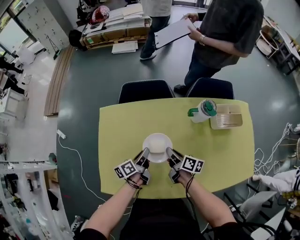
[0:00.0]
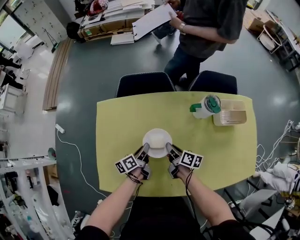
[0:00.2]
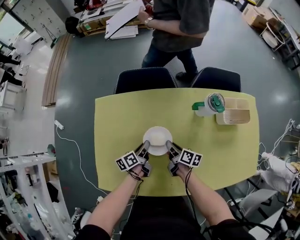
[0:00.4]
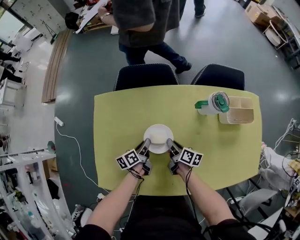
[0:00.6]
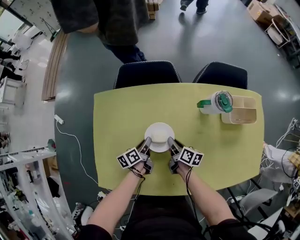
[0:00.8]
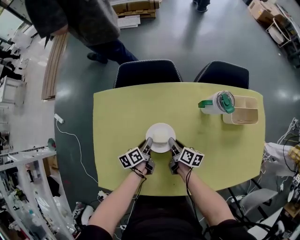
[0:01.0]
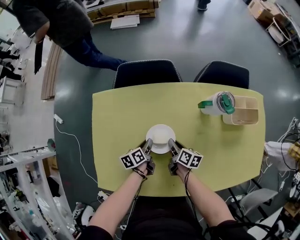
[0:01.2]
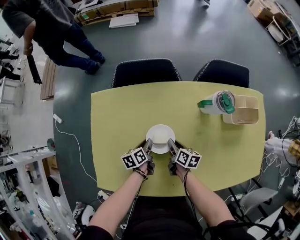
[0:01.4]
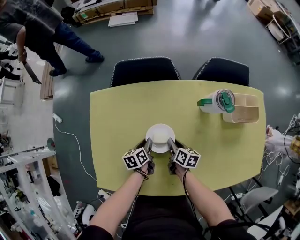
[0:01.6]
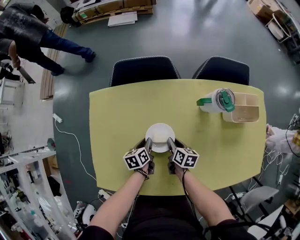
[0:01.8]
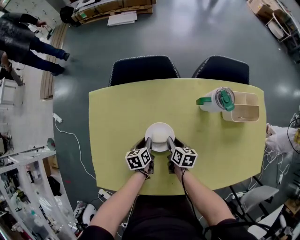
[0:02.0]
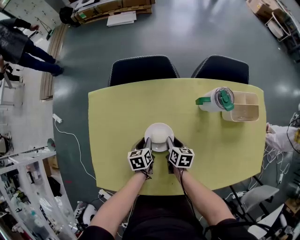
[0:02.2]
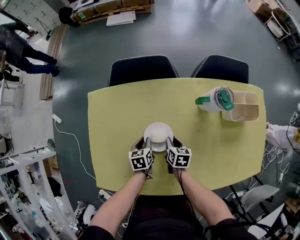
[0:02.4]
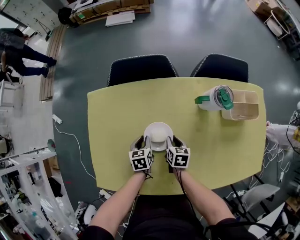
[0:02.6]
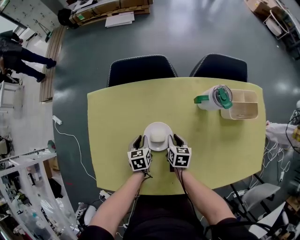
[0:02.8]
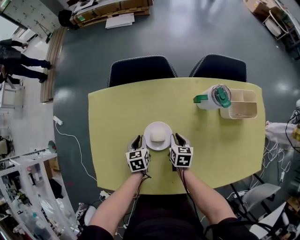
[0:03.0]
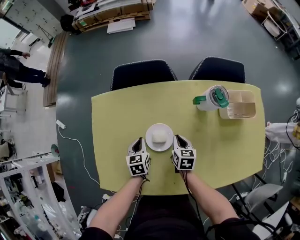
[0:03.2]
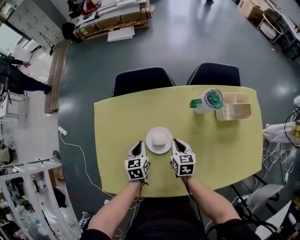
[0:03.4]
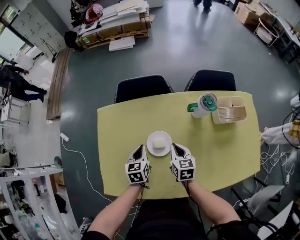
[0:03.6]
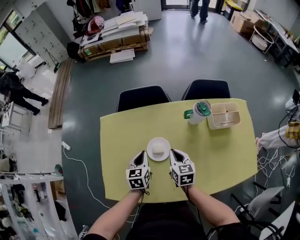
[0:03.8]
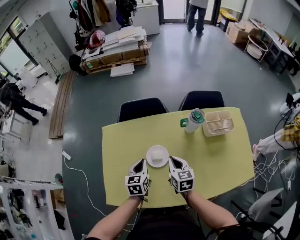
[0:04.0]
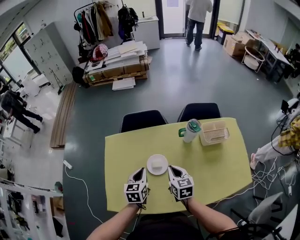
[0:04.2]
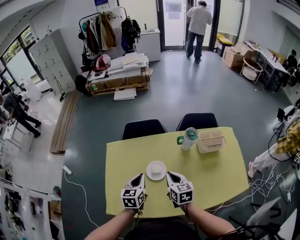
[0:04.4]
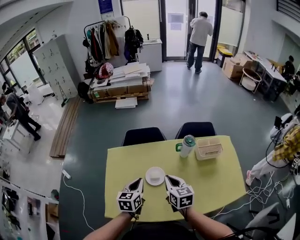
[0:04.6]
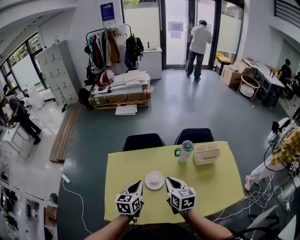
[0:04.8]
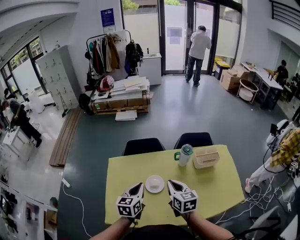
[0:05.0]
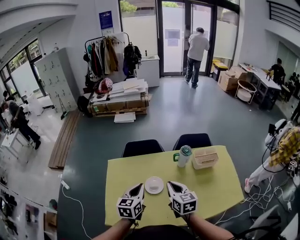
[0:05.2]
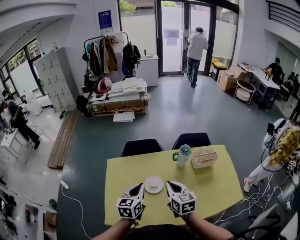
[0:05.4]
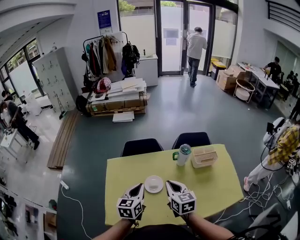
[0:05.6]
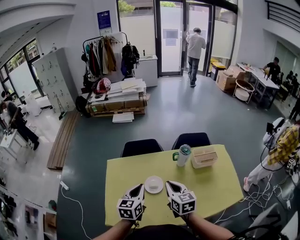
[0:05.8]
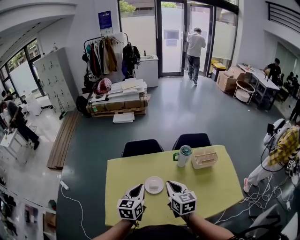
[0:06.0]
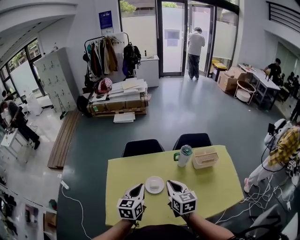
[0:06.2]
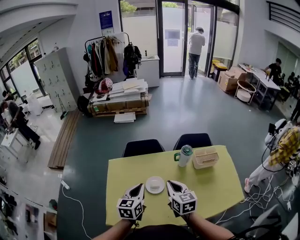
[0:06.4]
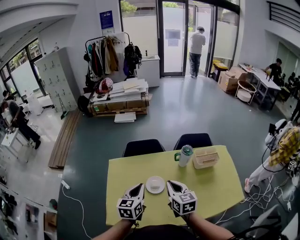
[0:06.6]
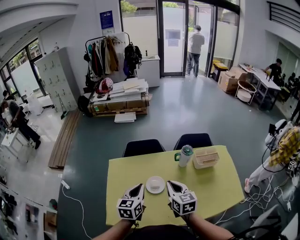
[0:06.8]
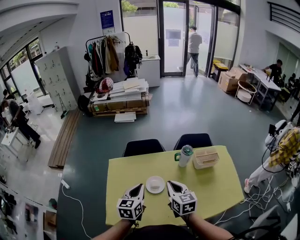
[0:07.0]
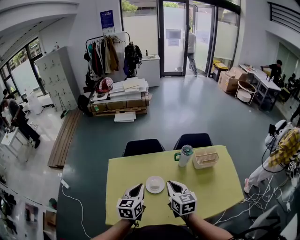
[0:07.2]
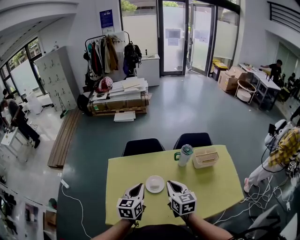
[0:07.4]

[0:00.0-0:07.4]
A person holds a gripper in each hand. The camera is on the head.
0:00.0 to 0:01.4: Both grippers travel together downward, some 15 cm. The left gripper changes its angle by about 30 degrees.
0:01.4 to 0:03.0: The right gripper turns by some 30 degrees; the left gripper turns by some 30 degrees.
0:03.0 to 0:04.4: The two grippers go about 30 cm upward. The right gripper changes its angle by approximately 20 degrees; the left gripper turns by roughly 20 degrees.
0:04.4 to 0:06.0: Both grippers travel together upward, approximately 10 cm.
0:06.0 to 0:07.4: Both grippers stay about where they are.

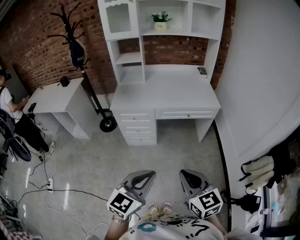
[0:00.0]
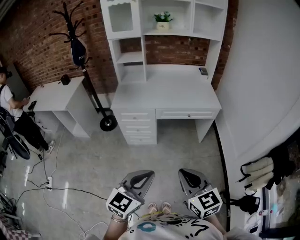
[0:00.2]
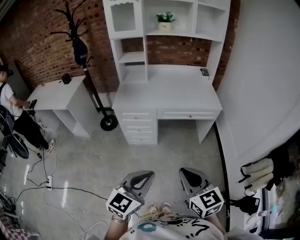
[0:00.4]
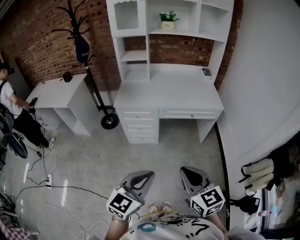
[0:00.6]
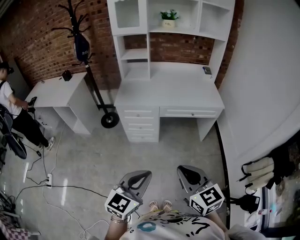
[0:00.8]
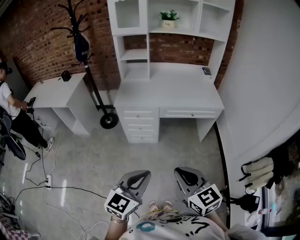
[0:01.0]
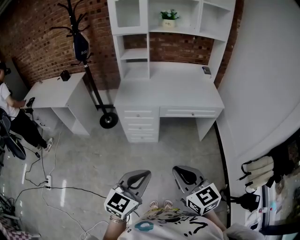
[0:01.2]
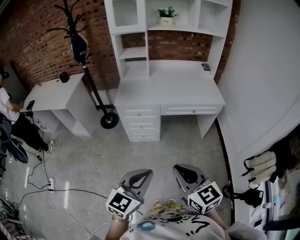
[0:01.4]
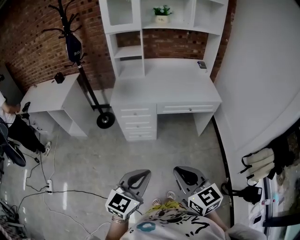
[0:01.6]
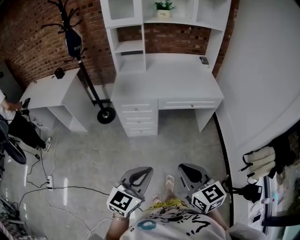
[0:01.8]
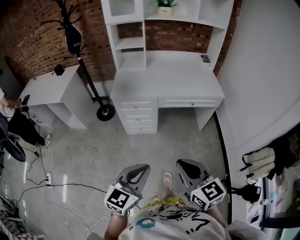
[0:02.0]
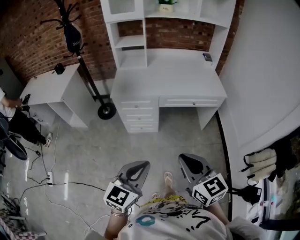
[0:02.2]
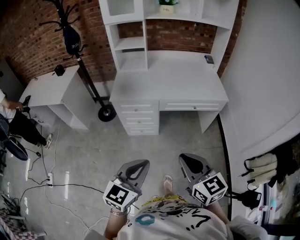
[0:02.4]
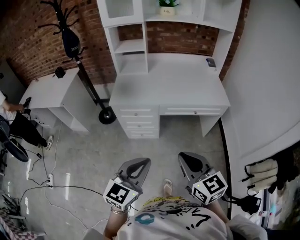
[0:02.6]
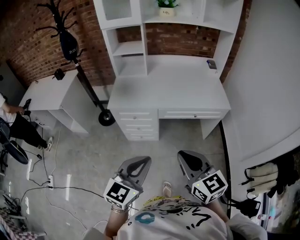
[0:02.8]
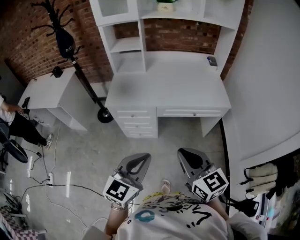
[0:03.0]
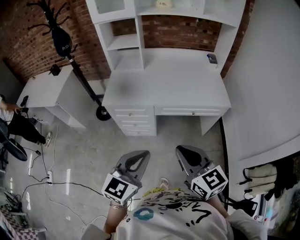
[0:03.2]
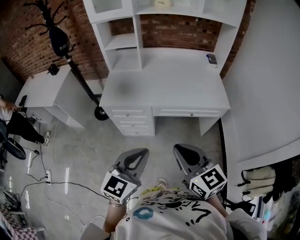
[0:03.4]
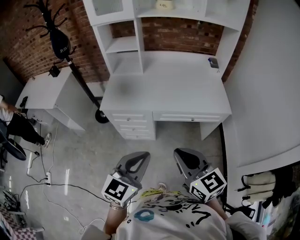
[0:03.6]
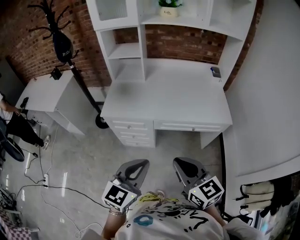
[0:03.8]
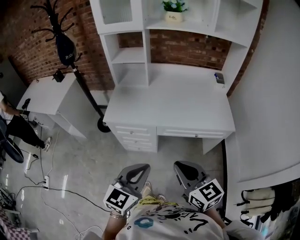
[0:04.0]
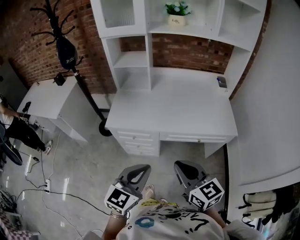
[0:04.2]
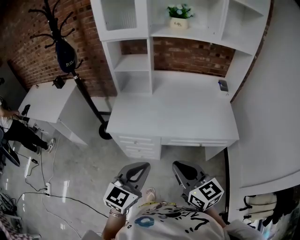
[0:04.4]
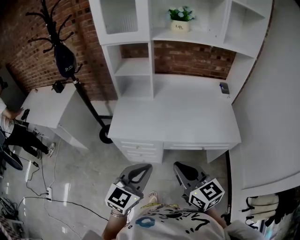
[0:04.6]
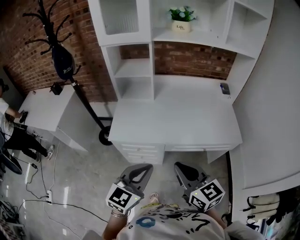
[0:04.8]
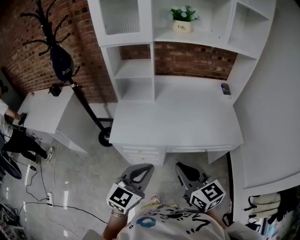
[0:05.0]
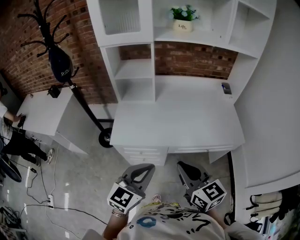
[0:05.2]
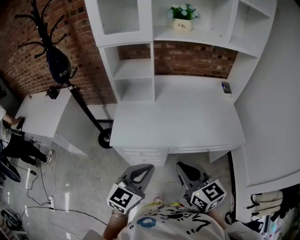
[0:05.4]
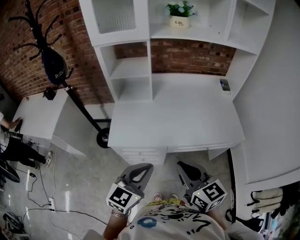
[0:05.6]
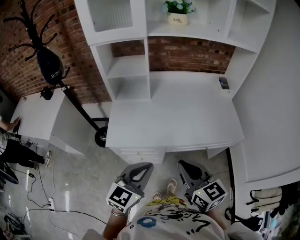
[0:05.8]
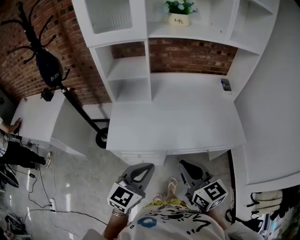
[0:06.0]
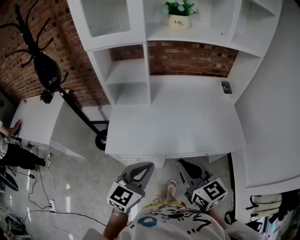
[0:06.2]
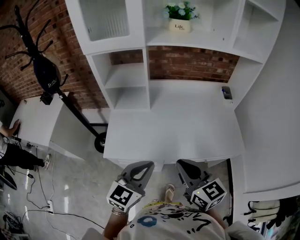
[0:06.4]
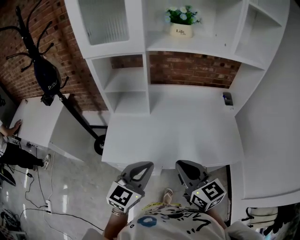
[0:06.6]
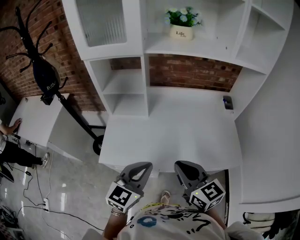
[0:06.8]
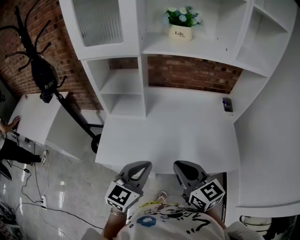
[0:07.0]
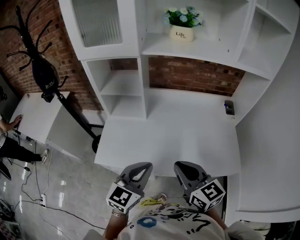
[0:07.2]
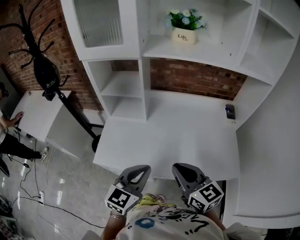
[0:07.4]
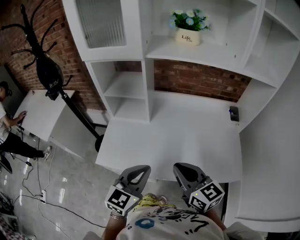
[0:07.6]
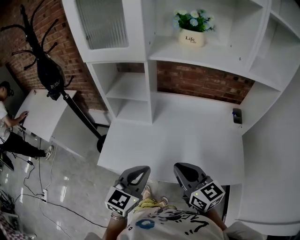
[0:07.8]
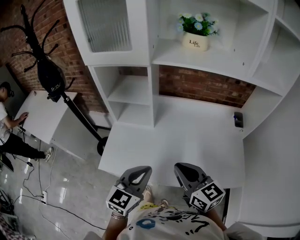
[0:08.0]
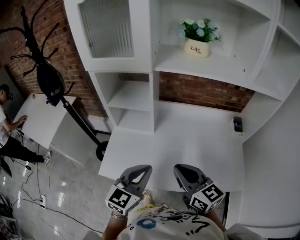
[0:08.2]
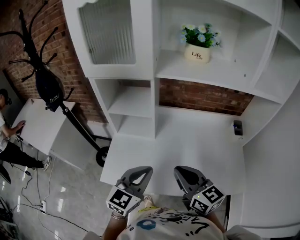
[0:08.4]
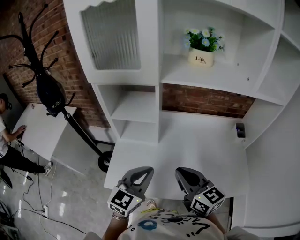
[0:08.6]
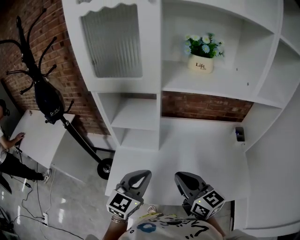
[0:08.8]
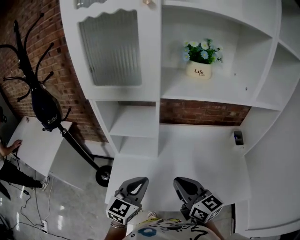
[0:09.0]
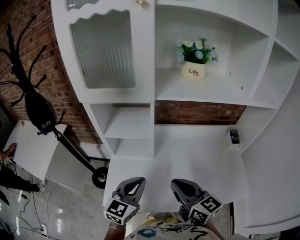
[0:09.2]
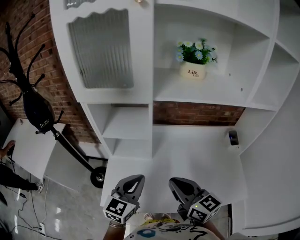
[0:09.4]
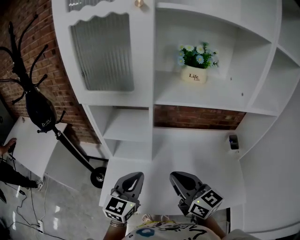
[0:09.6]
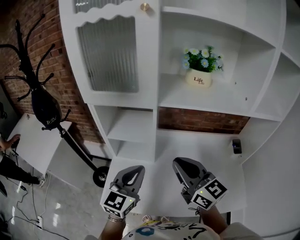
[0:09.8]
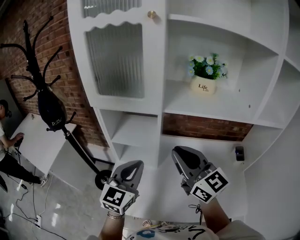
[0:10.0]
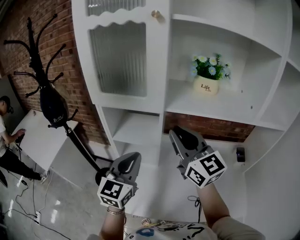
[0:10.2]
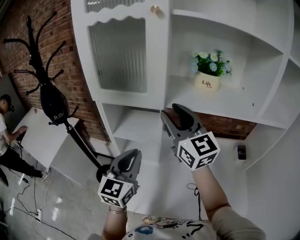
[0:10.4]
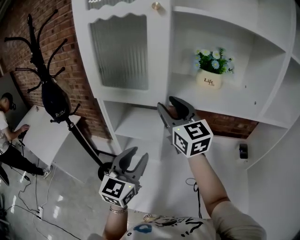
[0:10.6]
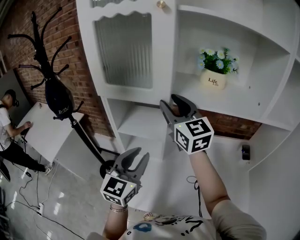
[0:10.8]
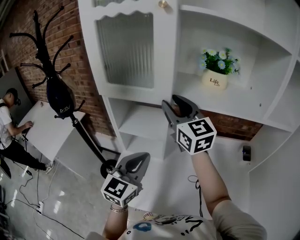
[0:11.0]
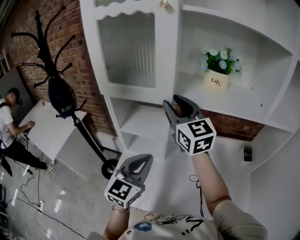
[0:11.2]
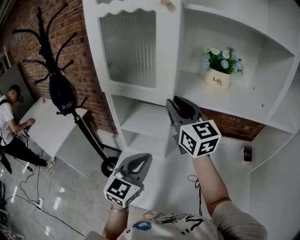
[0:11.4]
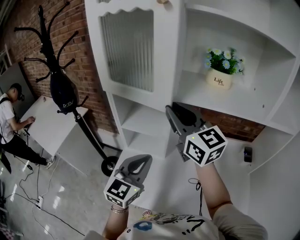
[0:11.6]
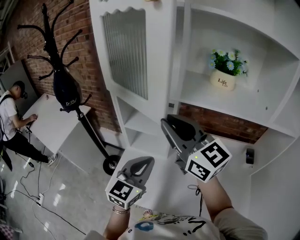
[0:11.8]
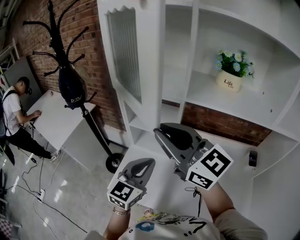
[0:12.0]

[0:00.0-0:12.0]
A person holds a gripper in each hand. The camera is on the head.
0:00.0 to 0:01.6: Both grippers travel together to the left, roughly 10 cm.
0:01.6 to 0:03.0: The two grippers go some 20 cm forward.
0:03.0 to 0:04.4: Both grippers travel together forward, approximately 15 cm.
0:04.4 to 0:06.0: Both grippers travel together forward, approximately 10 cm.
0:06.0 to 0:07.6: Both grippers travel together forward and to the right, approximately 15 cm.
0:07.6 to 0:09.0: The two grippers go about 15 cm forward and to the left.
0:09.0 to 0:10.4: The right gripper heads upward and forward, covering some 30 cm, turns by approximately 30 degrees, and opens up; the left gripper travels upward and forward by roughly 15 cm, and changes its angle by roughly 20 degrees.
0:10.4 to 0:12.0: The left gripper moves some 5 cm, and opens and closes again. The right gripper moves backward and to the left, some 15 cm, changes its angle by approximately 30 degrees, and closes up.

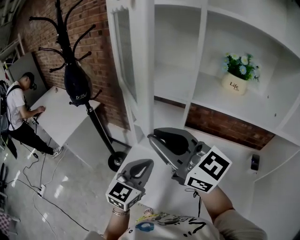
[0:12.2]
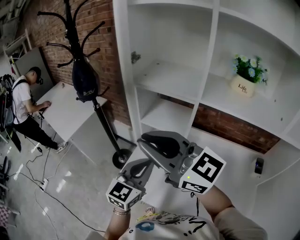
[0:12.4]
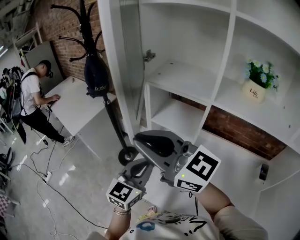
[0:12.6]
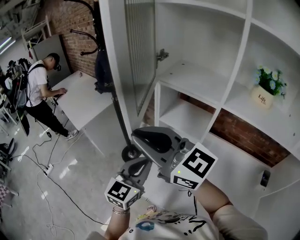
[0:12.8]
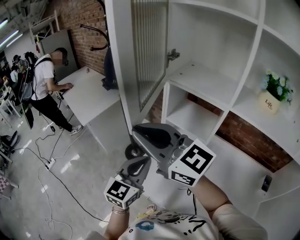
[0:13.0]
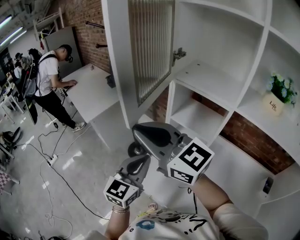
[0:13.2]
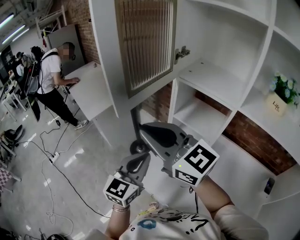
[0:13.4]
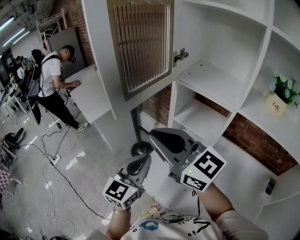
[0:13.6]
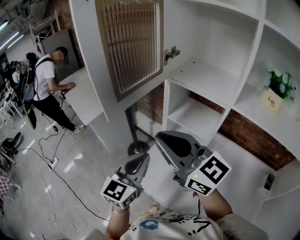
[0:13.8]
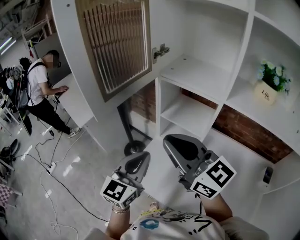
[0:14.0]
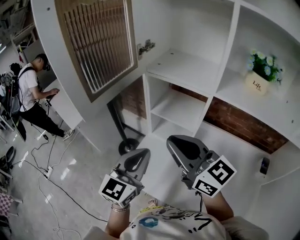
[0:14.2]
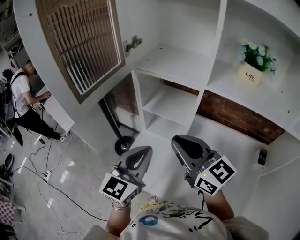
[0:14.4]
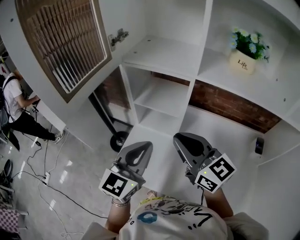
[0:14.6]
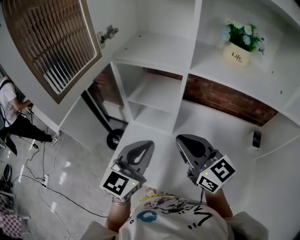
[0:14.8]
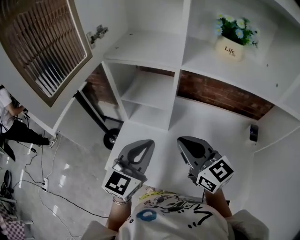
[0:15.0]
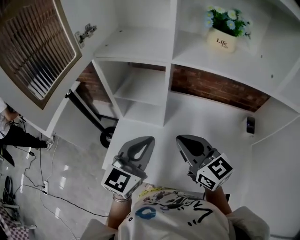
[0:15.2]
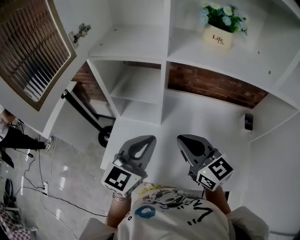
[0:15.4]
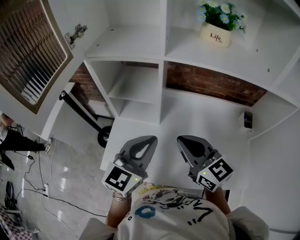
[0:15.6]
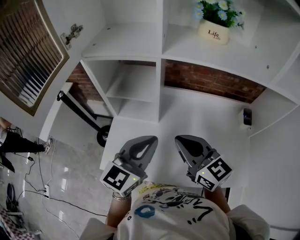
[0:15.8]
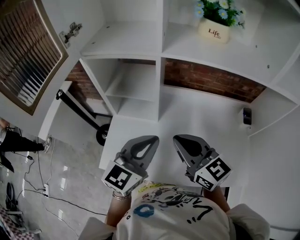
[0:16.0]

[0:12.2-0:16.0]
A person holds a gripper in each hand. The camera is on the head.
0:12.2 to 0:13.4: The two grippers go about 15 cm to the left. The left gripper rotates approximately 20 degrees.
0:13.4 to 0:14.8: The left gripper ends up about 15 cm from where it was, and turns by approximately 20 degrees, while the right gripper moves roughly 25 cm, and turns by about 40 degrees.
0:14.8 to 0:16.0: The right gripper changes place by roughly 5 cm. The left gripper is displaced to the right by roughly 5 cm.
